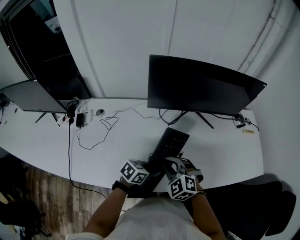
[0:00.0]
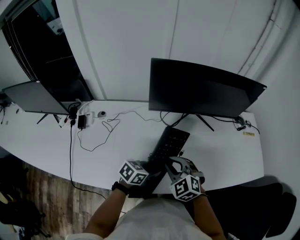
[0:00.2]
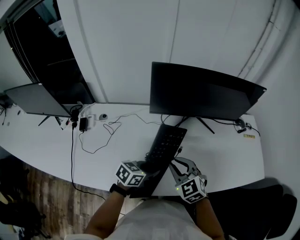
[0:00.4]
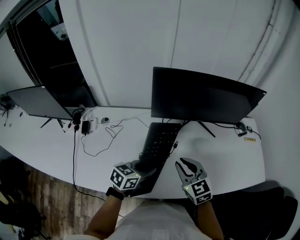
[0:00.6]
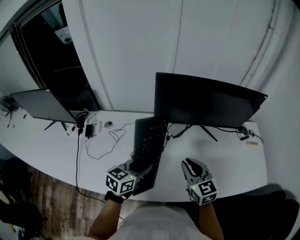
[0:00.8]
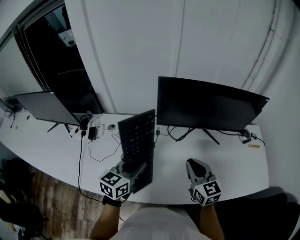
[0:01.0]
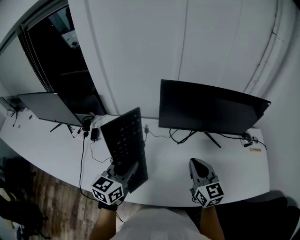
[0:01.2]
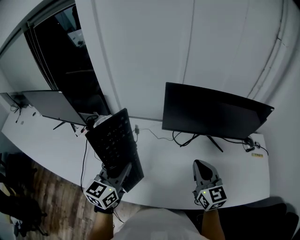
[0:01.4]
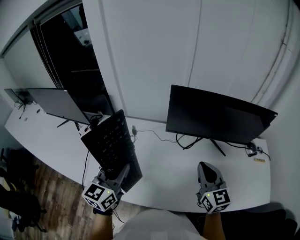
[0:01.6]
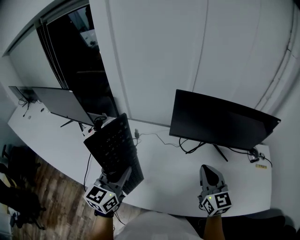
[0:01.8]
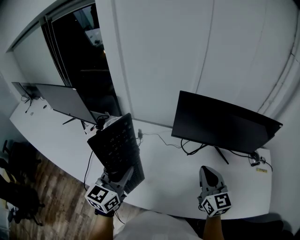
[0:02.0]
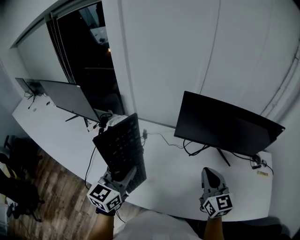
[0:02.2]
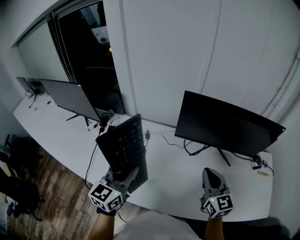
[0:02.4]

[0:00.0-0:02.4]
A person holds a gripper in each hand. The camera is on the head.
0:00.0 to 0:01.2: The right gripper moves upward, forward and to the right, approximately 15 cm, and tilts its fingers roughly 30 degrees upward. Meanwhile the left gripper shifts some 25 cm upward and to the left, and swivels about 50 degrees.
0:01.2 to 0:02.4: The left gripper ends up approximately 5 cm from where it was.

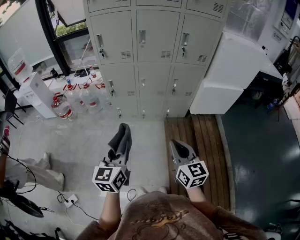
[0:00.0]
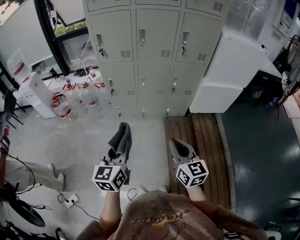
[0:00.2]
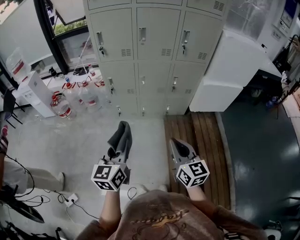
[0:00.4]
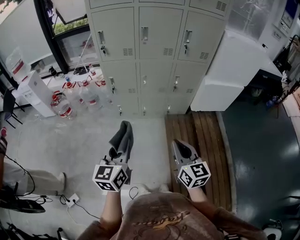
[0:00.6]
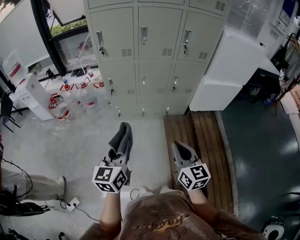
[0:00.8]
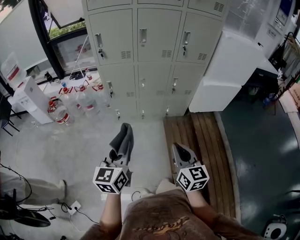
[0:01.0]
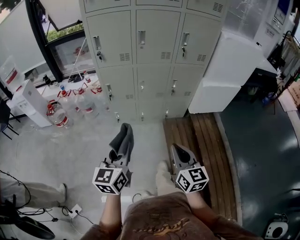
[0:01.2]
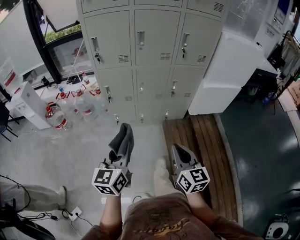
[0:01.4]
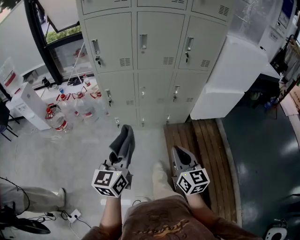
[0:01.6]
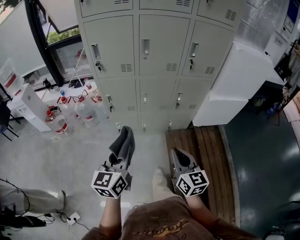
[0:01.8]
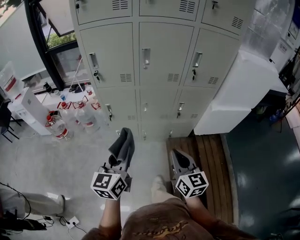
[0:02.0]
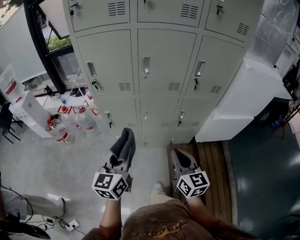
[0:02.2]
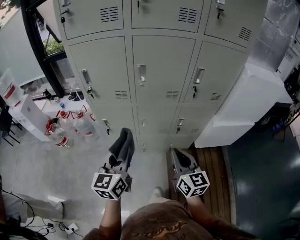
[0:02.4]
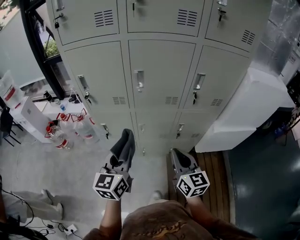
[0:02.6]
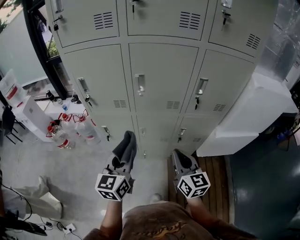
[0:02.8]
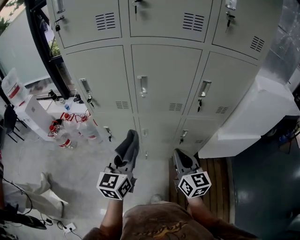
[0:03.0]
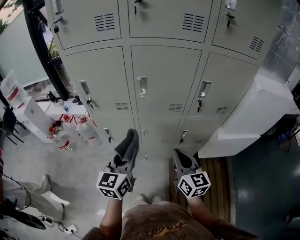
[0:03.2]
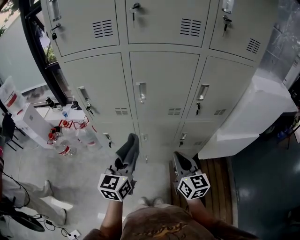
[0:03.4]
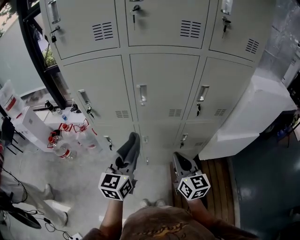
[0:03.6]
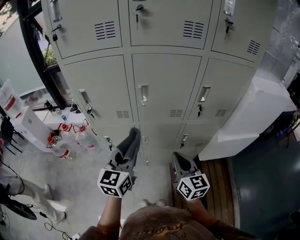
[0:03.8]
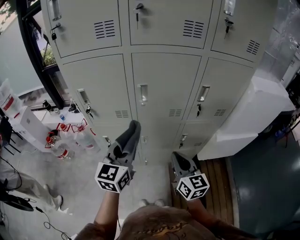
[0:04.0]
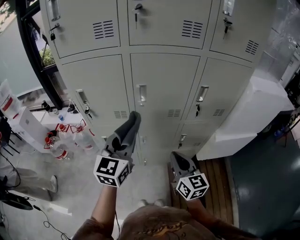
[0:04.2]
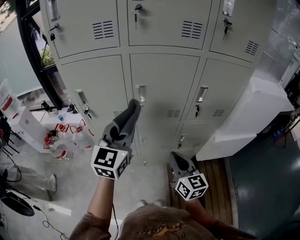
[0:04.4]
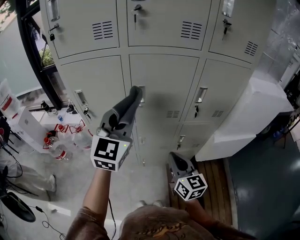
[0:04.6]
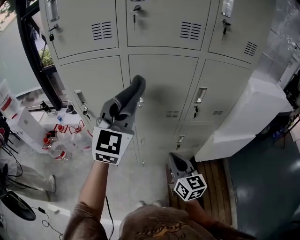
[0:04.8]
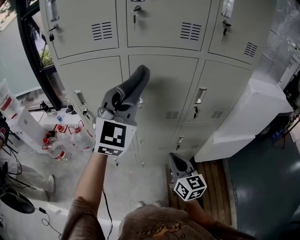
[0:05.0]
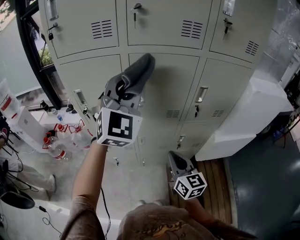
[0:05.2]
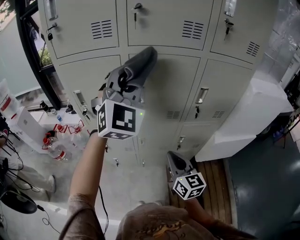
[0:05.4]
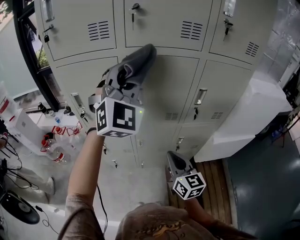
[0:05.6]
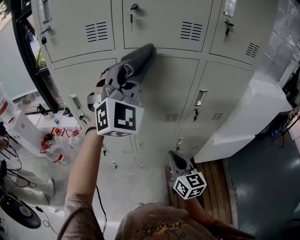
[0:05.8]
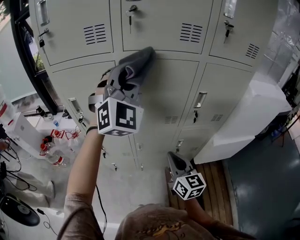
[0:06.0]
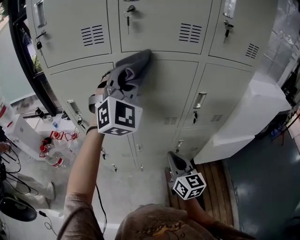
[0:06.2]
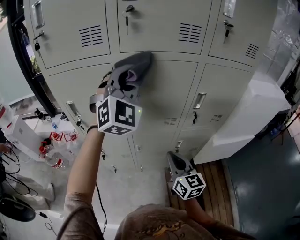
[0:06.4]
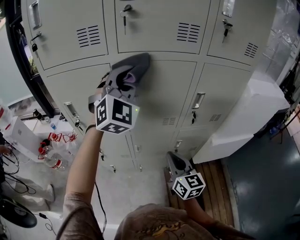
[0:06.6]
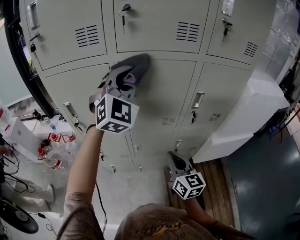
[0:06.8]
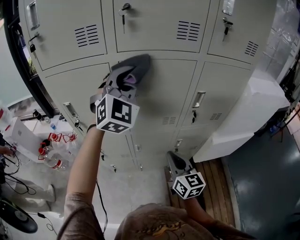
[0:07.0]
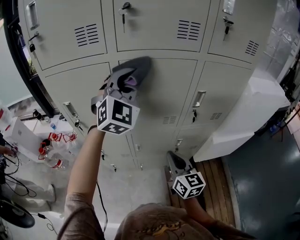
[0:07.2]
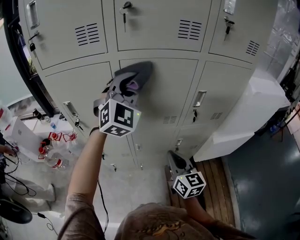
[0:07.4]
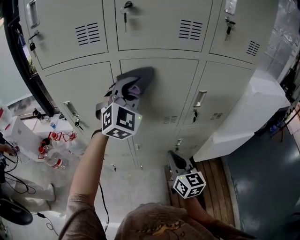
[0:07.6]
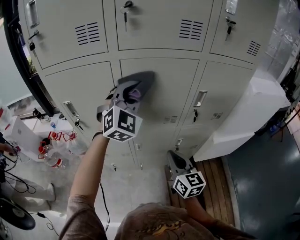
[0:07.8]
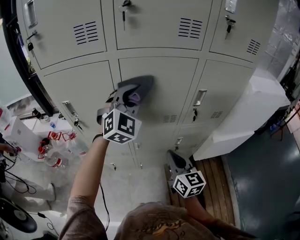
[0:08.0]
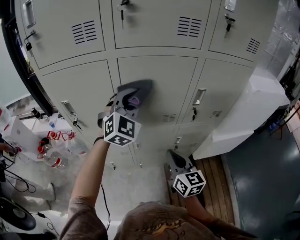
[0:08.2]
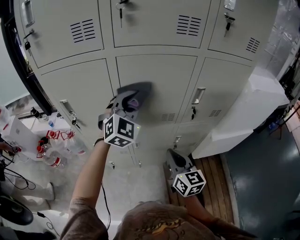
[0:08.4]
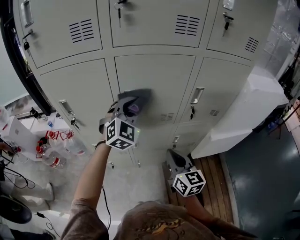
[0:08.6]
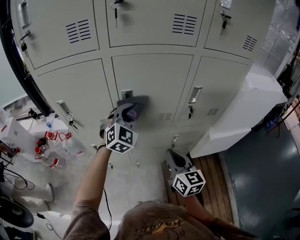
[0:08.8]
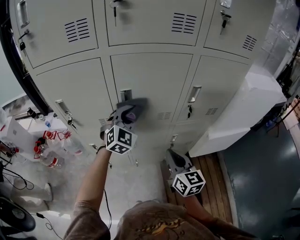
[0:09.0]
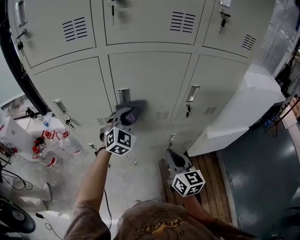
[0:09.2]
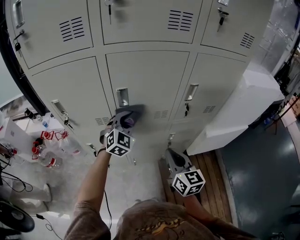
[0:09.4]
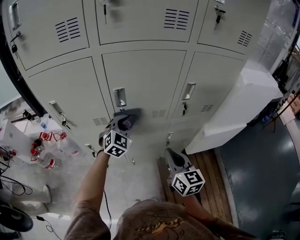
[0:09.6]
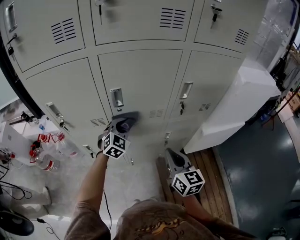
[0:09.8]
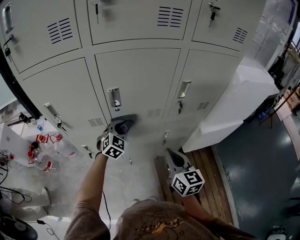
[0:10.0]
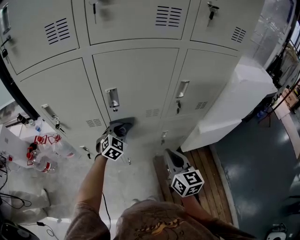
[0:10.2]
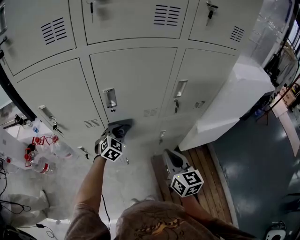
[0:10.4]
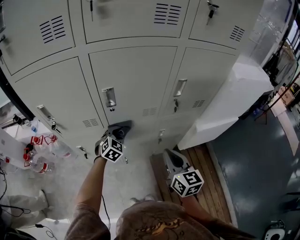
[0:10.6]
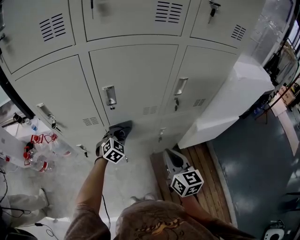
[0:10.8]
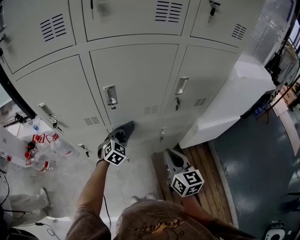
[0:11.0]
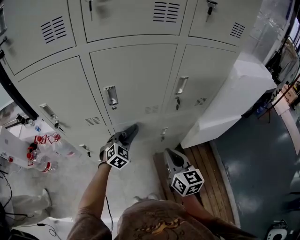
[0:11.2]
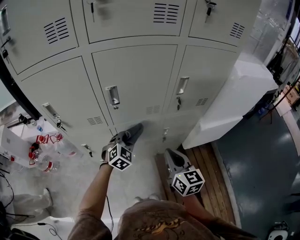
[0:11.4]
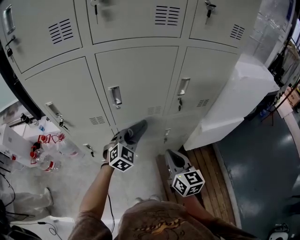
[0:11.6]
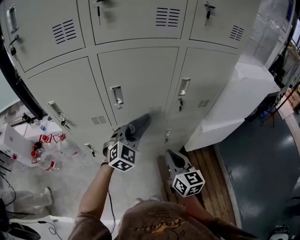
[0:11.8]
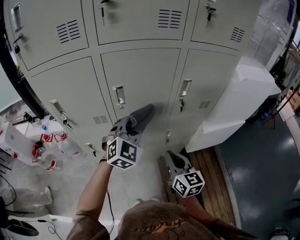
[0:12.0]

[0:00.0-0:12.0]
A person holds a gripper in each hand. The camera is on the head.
0:00.0 to 0:01.6: The grippers both shift forward by approximately 5 cm.
0:01.6 to 0:03.0: The two grippers go about 30 cm forward.
0:03.0 to 0:04.4: The left gripper travels upward and forward by roughly 15 cm, and changes its angle by roughly 20 degrees.
0:04.4 to 0:06.0: The left gripper moves upward and forward, approximately 20 cm, and rotates around the line of its fingers by roughly 50 degrees, clockwise from behind.
0:06.0 to 0:07.6: The left gripper moves downward, roughly 10 cm.
0:07.6 to 0:09.0: The left gripper is displaced downward by roughly 15 cm.
0:09.0 to 0:10.4: The left gripper goes approximately 15 cm downward, and swivels about 20 degrees.
0:10.4 to 0:12.0: The left gripper shifts about 20 cm upward and backward.

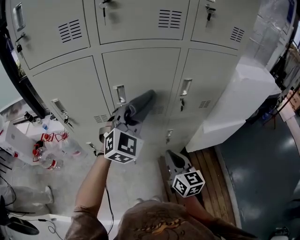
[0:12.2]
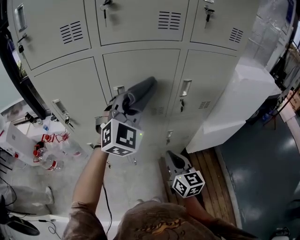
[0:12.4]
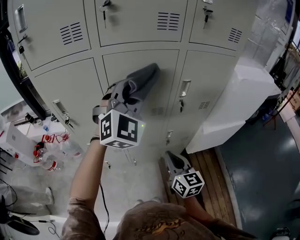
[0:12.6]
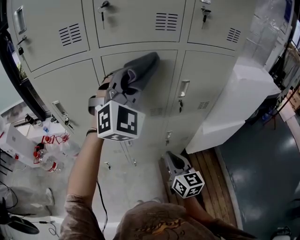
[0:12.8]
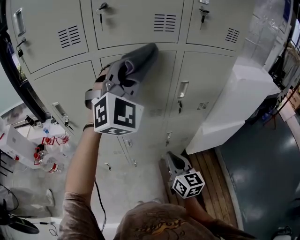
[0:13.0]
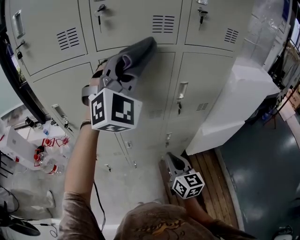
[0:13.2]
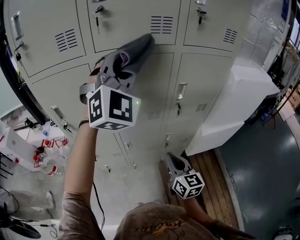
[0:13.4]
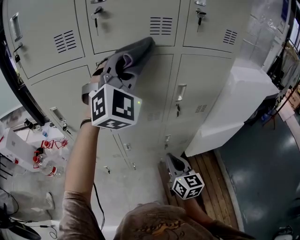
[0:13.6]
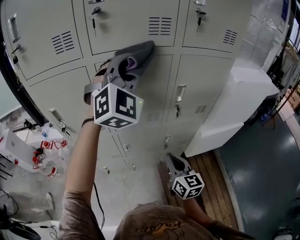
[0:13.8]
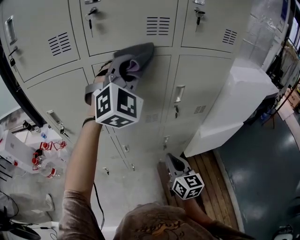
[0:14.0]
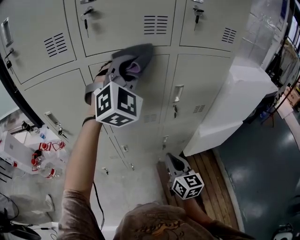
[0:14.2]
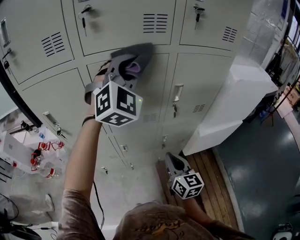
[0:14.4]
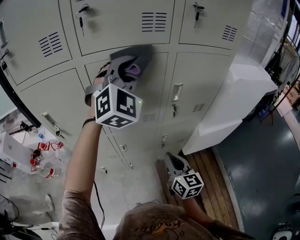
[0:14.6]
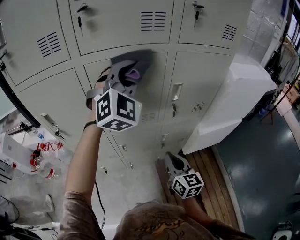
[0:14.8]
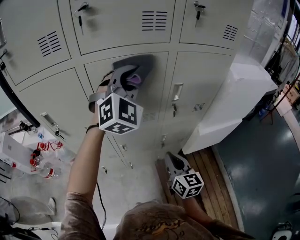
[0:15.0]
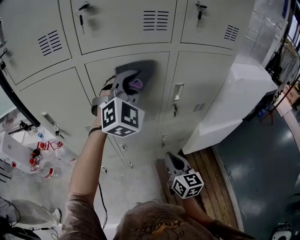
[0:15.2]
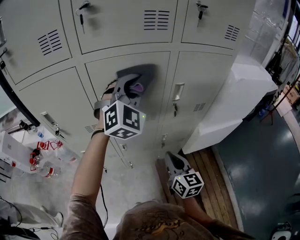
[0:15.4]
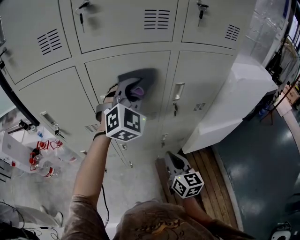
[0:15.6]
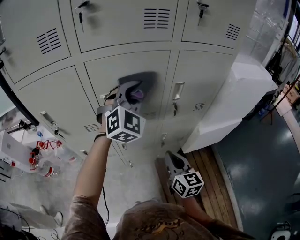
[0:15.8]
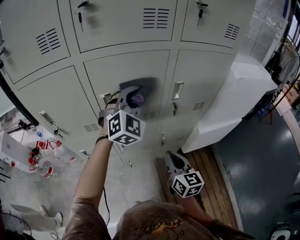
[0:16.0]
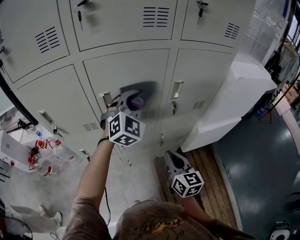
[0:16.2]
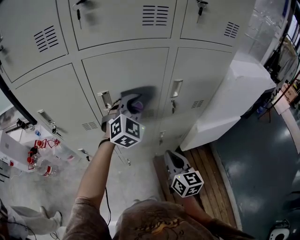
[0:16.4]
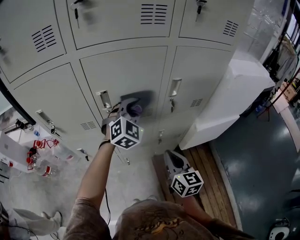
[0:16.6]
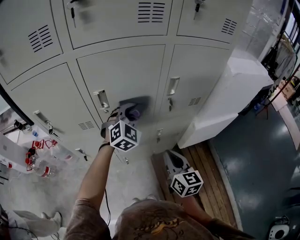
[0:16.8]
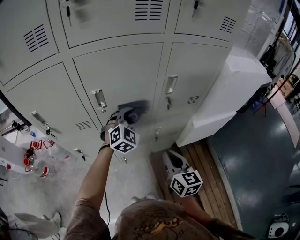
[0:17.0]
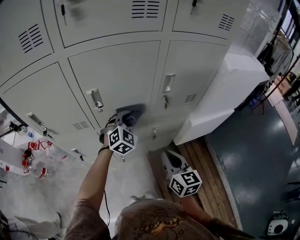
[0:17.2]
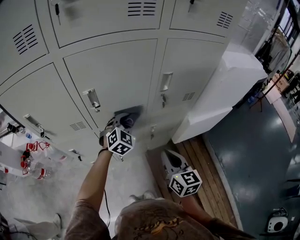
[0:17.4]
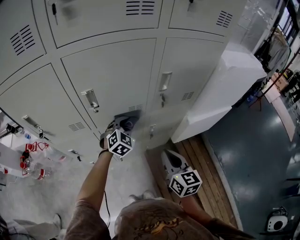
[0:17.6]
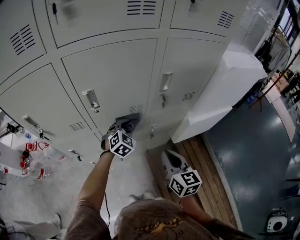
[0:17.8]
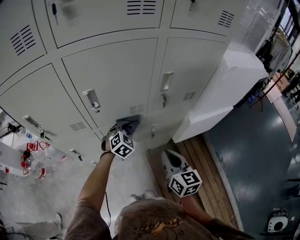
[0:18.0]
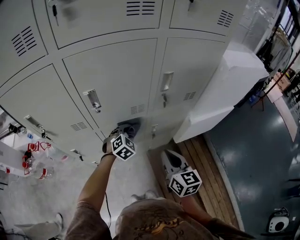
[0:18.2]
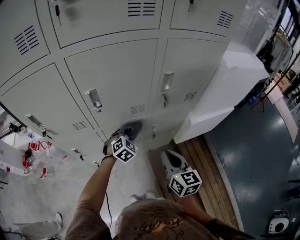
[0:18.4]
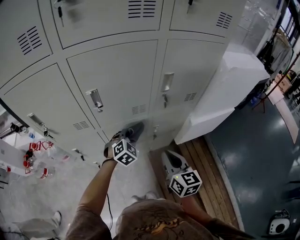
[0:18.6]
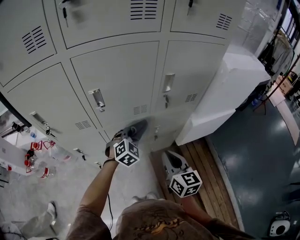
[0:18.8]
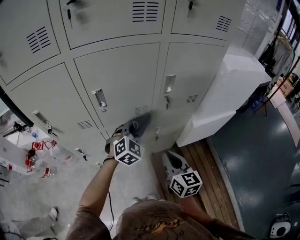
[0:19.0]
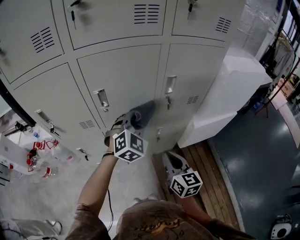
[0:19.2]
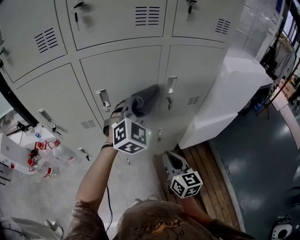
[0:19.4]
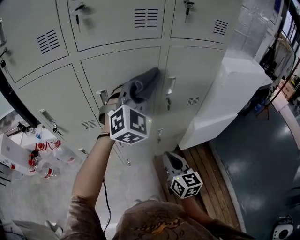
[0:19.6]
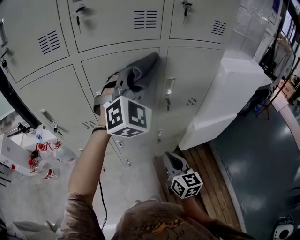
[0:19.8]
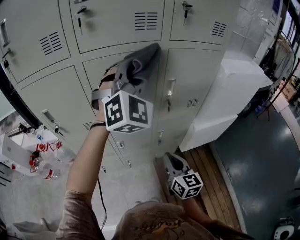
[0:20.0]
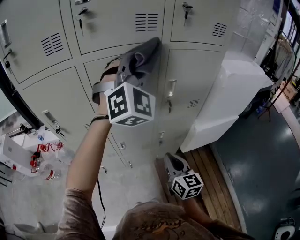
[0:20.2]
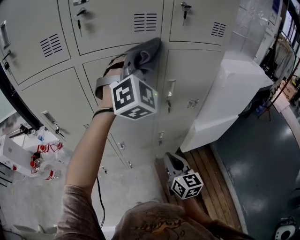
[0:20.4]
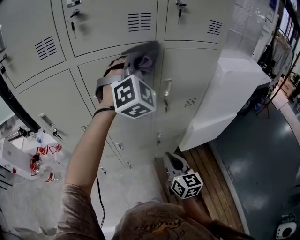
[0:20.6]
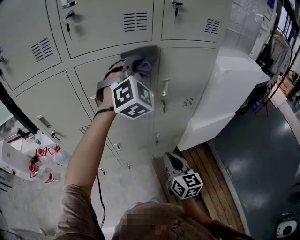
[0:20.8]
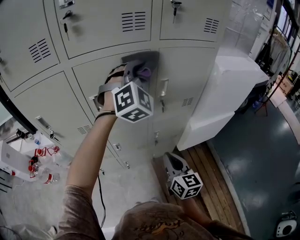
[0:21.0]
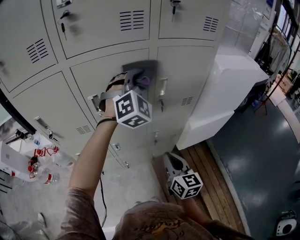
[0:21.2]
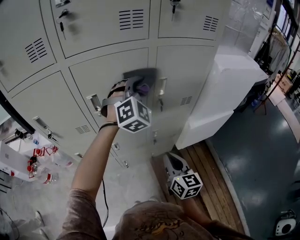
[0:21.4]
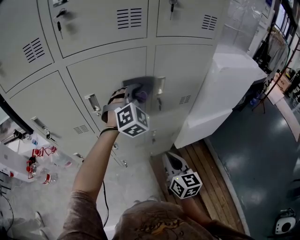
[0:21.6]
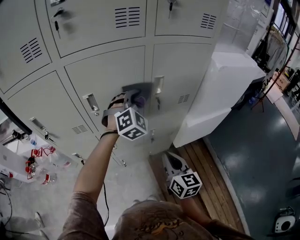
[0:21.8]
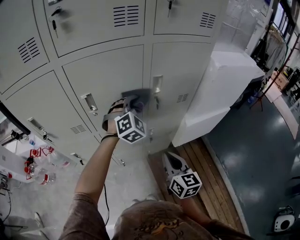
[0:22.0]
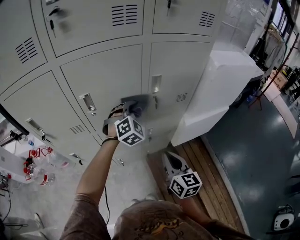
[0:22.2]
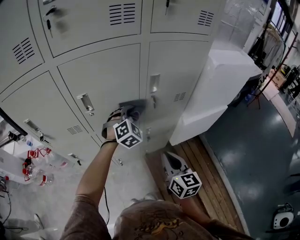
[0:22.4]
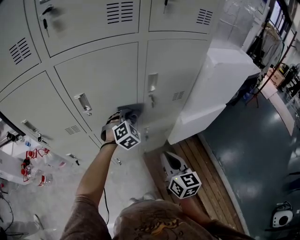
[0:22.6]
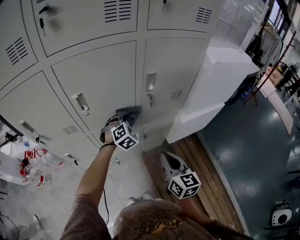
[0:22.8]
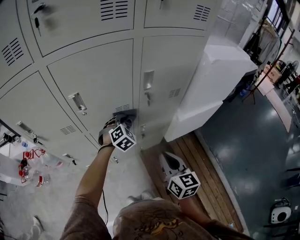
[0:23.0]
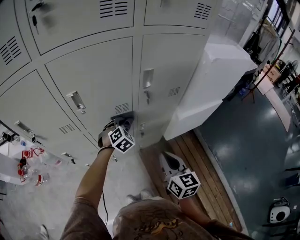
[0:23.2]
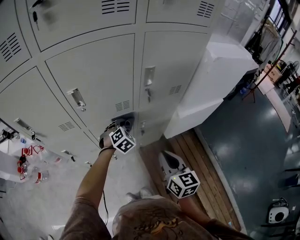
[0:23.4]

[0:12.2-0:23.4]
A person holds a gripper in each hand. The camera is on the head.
0:12.2 to 0:13.8: The left gripper goes some 20 cm upward, and turns by approximately 20 degrees.
0:13.8 to 0:15.4: The left gripper goes about 10 cm downward.
0:15.4 to 0:17.0: The left gripper goes roughly 20 cm downward, and swivels roughly 20 degrees.
0:17.0 to 0:18.6: The left gripper shifts some 15 cm downward and backward.
0:18.6 to 0:20.2: The left gripper shifts roughly 40 cm upward, and angles its fingers upward, by some 40 degrees.
0:20.2 to 0:21.8: The left gripper goes some 20 cm downward, and turns by some 20 degrees.
0:21.8 to 0:23.4: The left gripper is displaced downward by approximately 25 cm, and changes its angle by some 30 degrees.
